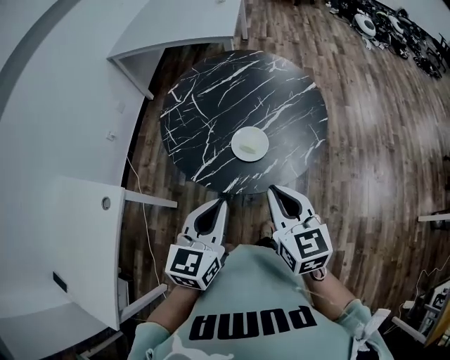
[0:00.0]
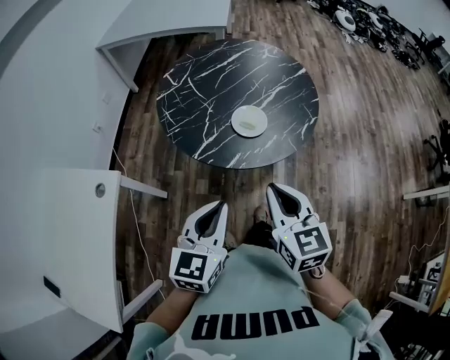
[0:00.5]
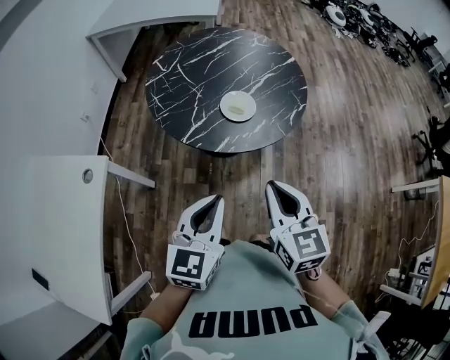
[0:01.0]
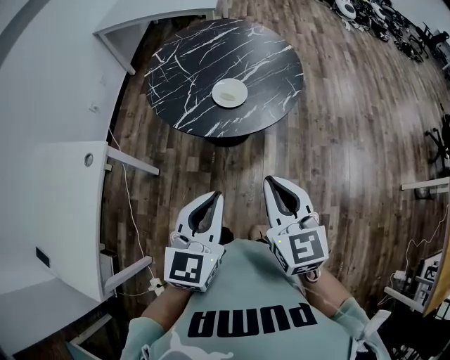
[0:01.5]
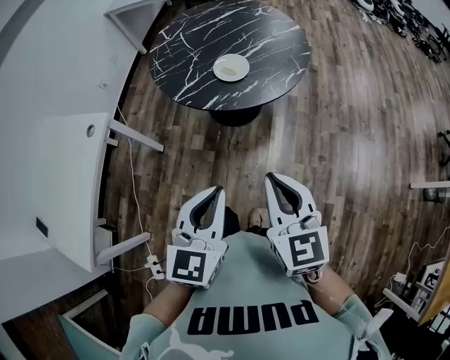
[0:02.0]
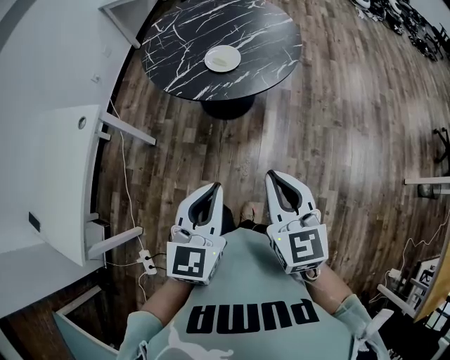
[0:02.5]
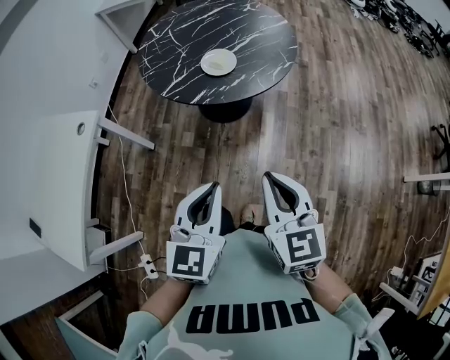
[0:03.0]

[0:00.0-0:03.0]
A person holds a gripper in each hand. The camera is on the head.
0:00.0 to 0:01.5: Both grippers travel together backward, approximately 20 cm.
0:01.5 to 0:03.0: The grippers both shift backward and to the right by roughly 10 cm.

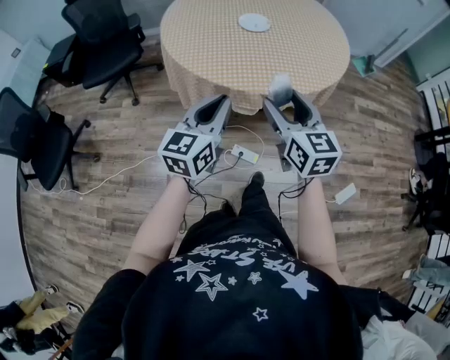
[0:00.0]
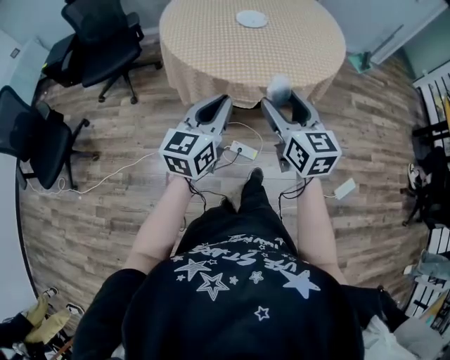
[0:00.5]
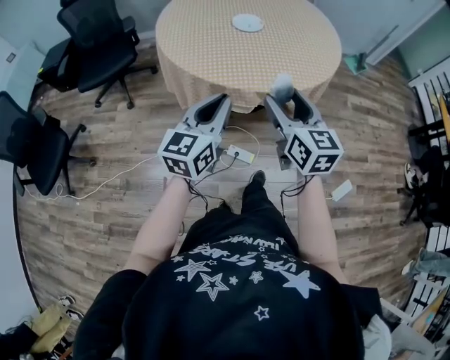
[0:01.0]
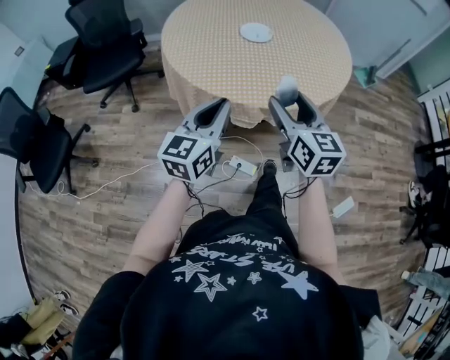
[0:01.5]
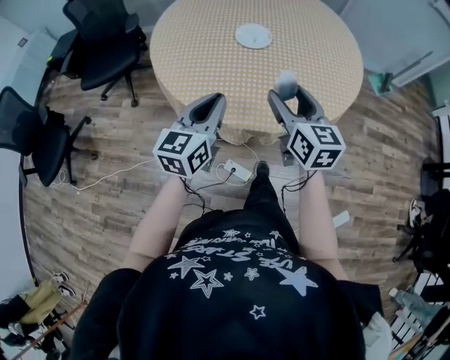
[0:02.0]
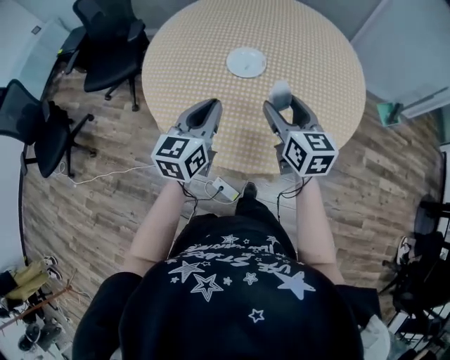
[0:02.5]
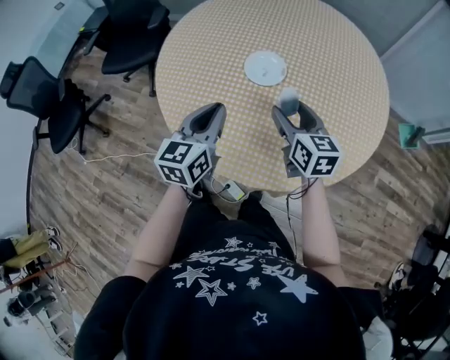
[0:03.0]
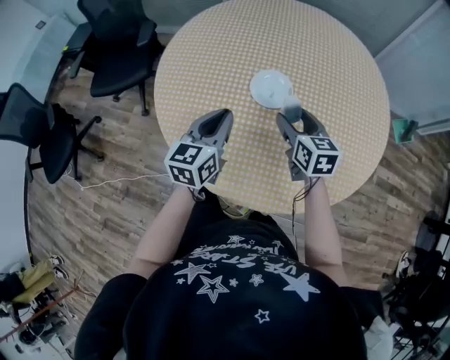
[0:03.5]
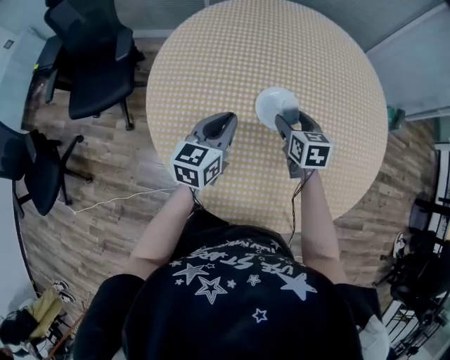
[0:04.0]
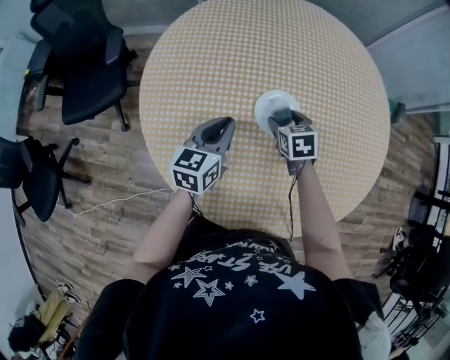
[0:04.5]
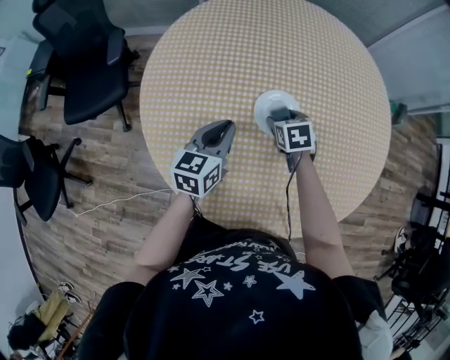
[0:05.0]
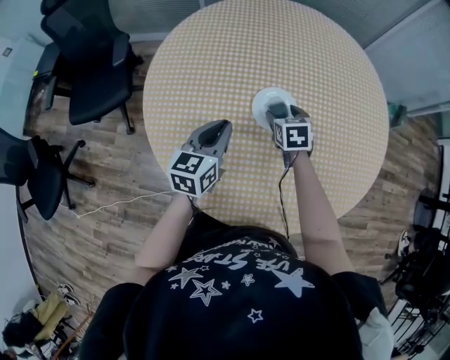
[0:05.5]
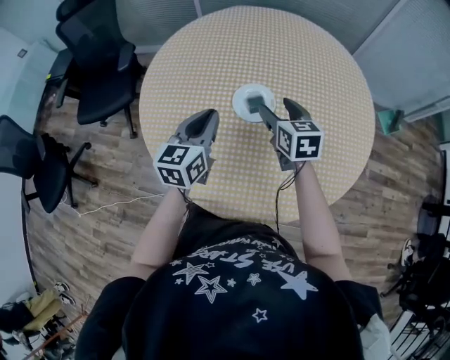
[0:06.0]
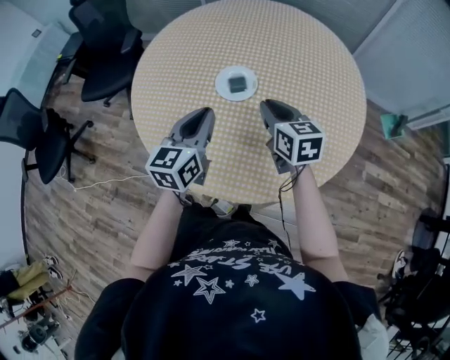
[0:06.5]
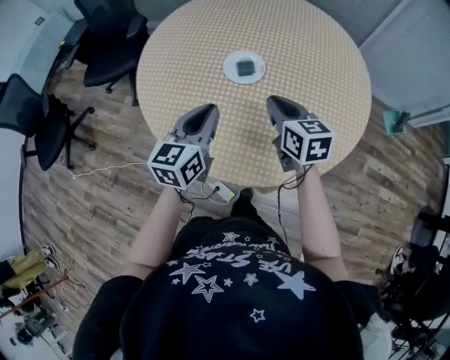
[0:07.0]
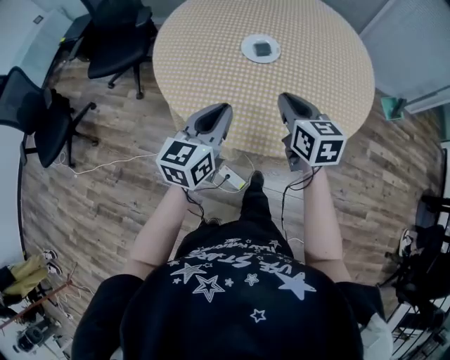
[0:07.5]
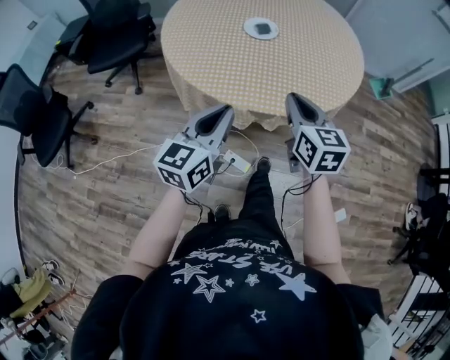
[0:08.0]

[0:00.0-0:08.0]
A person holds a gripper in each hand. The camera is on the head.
0:00.0 to 0:02.0: The two grippers go approximately 20 cm forward.
0:02.0 to 0:04.0: The left gripper is displaced forward by about 30 cm. Meanwhile the right gripper travels forward and downward by about 35 cm, and swivels some 30 degrees.
0:04.0 to 0:06.0: Both grippers move upward, some 5 cm.
0:06.0 to 0:08.0: The grippers both shift backward by roughly 40 cm. The right gripper closes up.

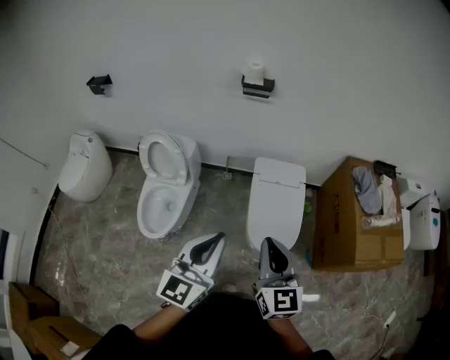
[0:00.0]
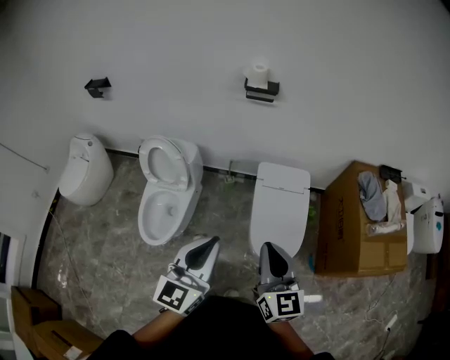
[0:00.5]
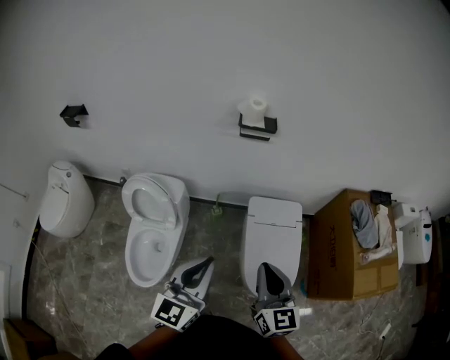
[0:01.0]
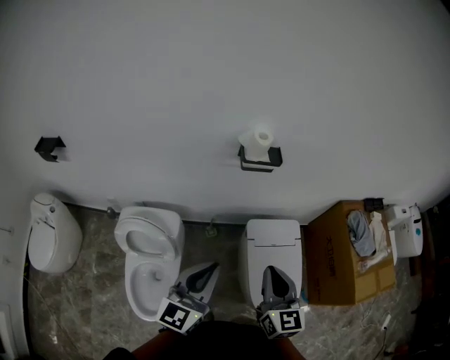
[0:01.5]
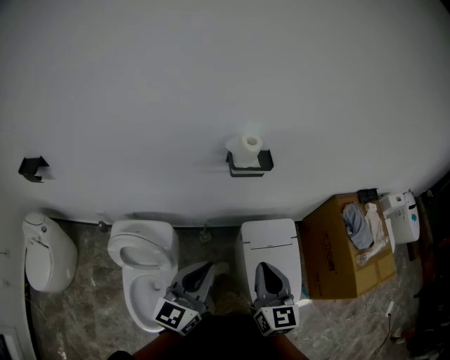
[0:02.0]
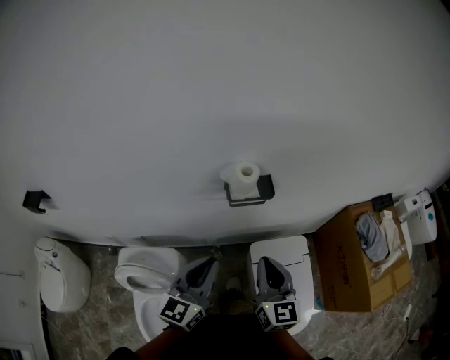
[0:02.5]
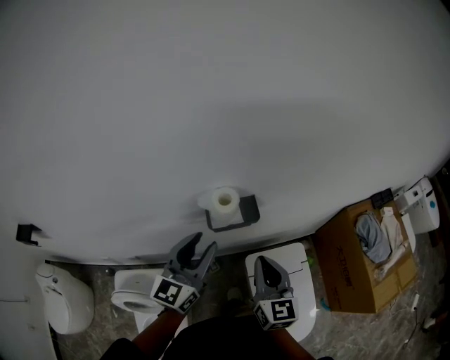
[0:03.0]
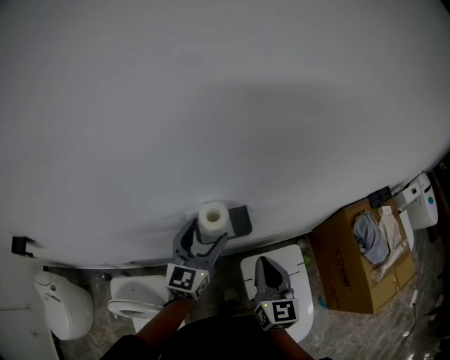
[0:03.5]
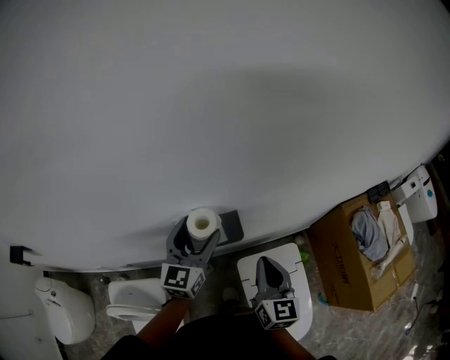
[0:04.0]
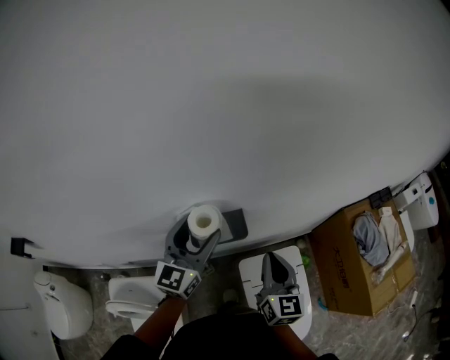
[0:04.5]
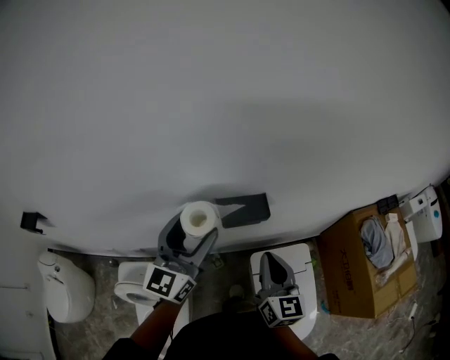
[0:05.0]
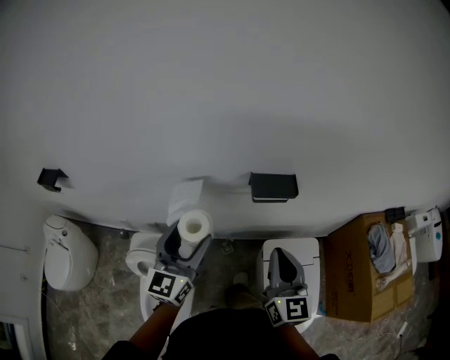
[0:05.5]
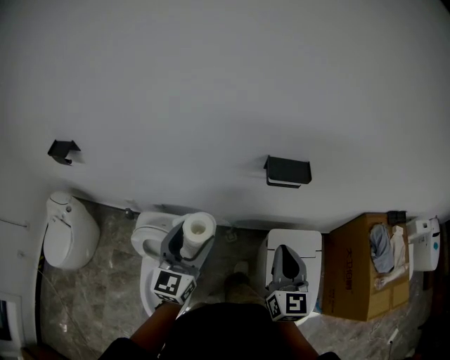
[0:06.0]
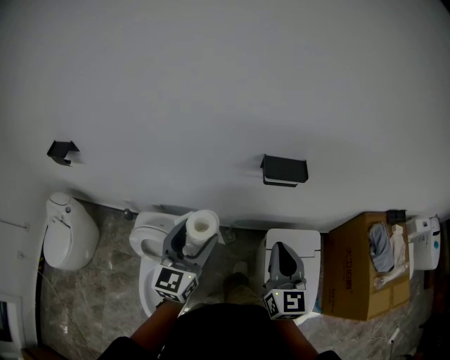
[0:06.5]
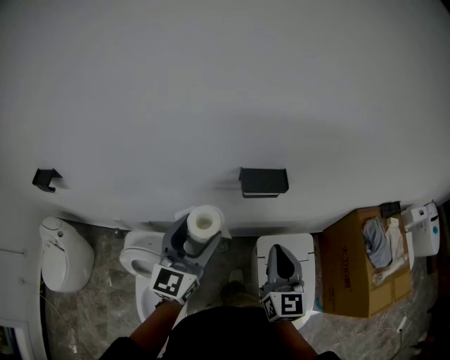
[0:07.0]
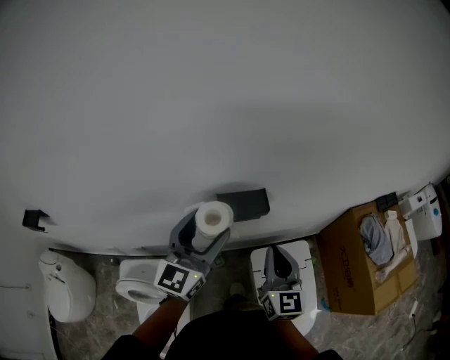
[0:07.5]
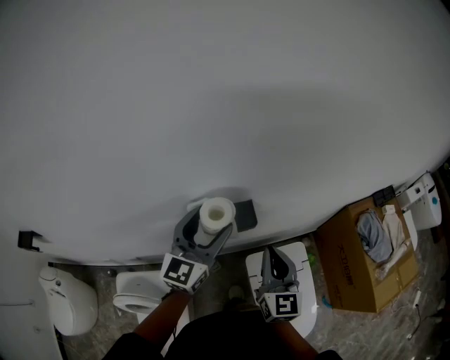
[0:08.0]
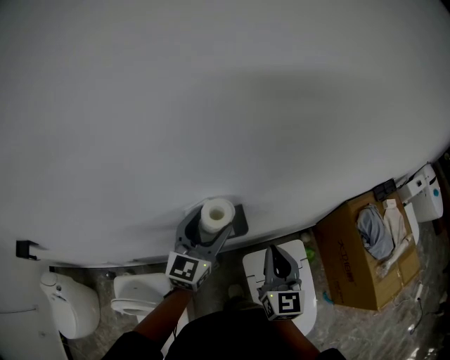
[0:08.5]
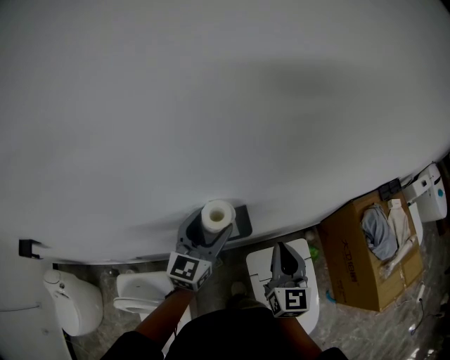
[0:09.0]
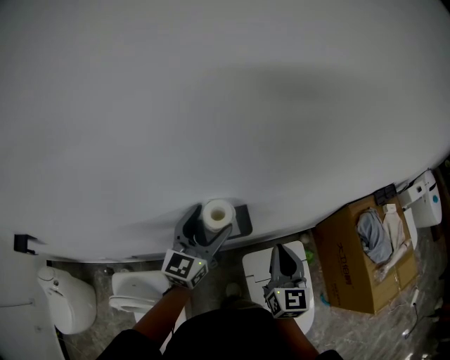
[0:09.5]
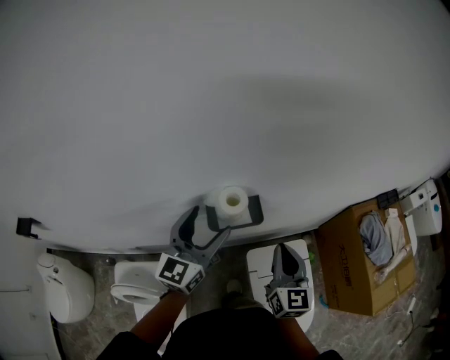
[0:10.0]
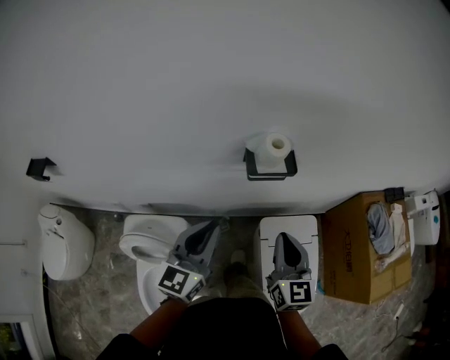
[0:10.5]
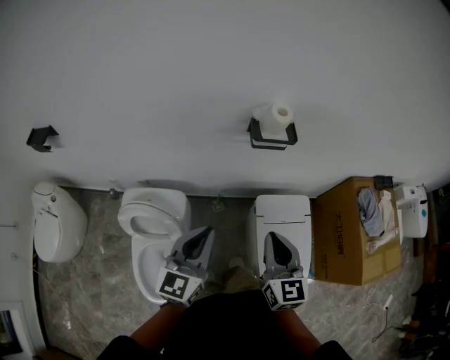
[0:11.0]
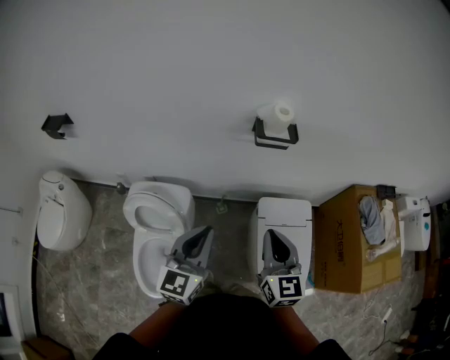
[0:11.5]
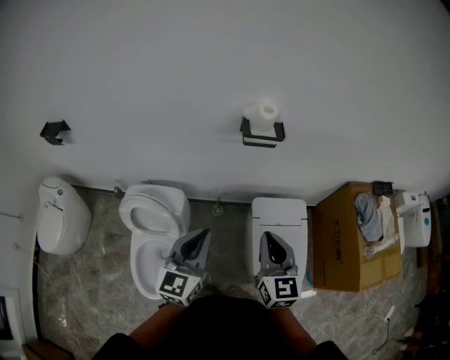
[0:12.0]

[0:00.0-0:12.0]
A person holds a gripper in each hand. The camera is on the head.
0:00.0 to 0:02.0: The two grippers travel together, forward and to the left, about 50 cm.
0:02.0 to 0:04.0: The grippers both shift forward by about 40 cm. The left gripper opens its fingers.
0:04.0 to 0:06.0: Both grippers move backward and to the left, roughly 35 cm.
0:06.0 to 0:08.0: The right gripper is displaced forward and to the right by approximately 25 cm. Meanwhile the left gripper moves forward and to the right, about 35 cm, and rotates some 20 degrees.
0:10.0 to 0:12.0: Both grippers move backward, approximately 35 cm. The left gripper closes.

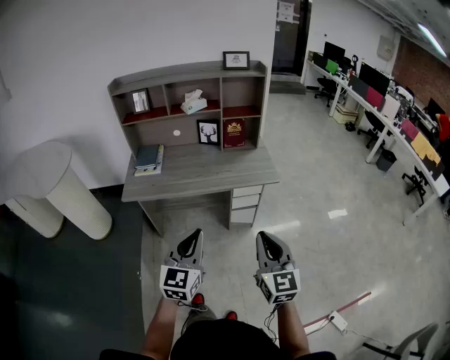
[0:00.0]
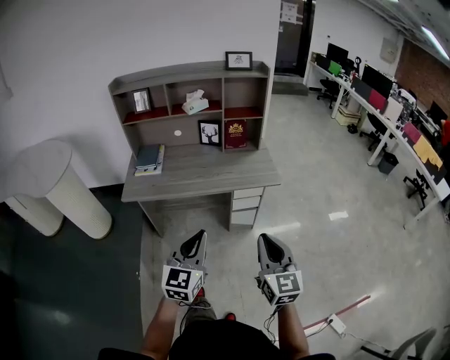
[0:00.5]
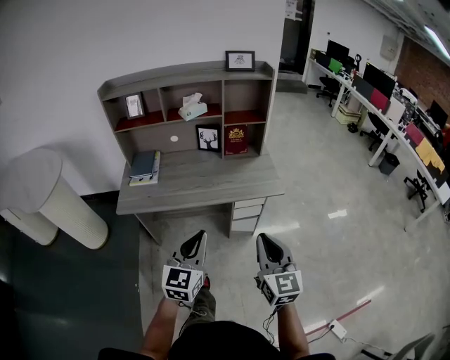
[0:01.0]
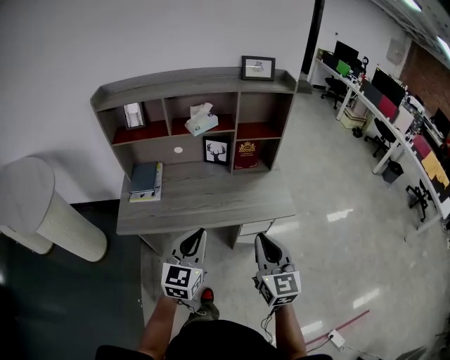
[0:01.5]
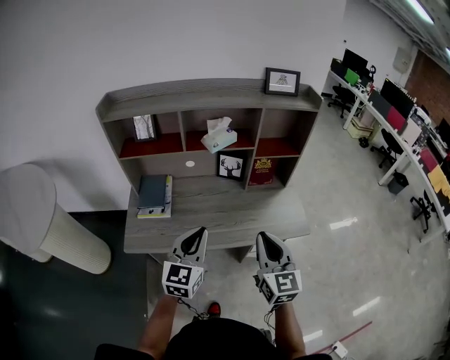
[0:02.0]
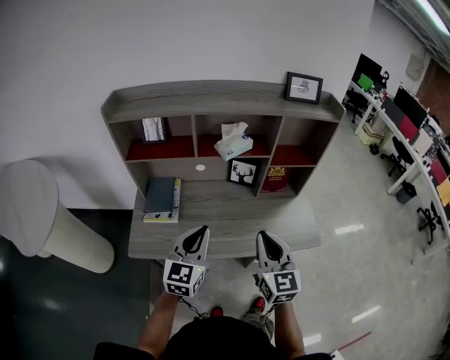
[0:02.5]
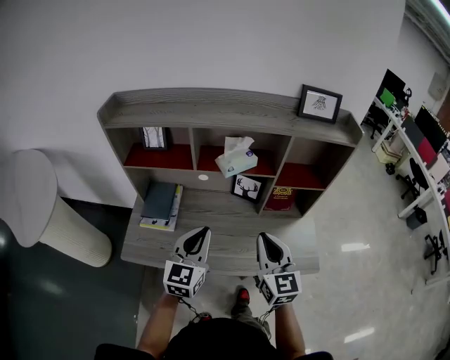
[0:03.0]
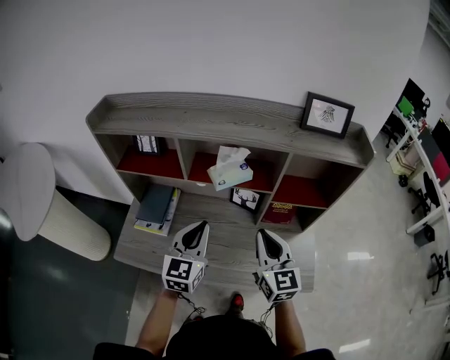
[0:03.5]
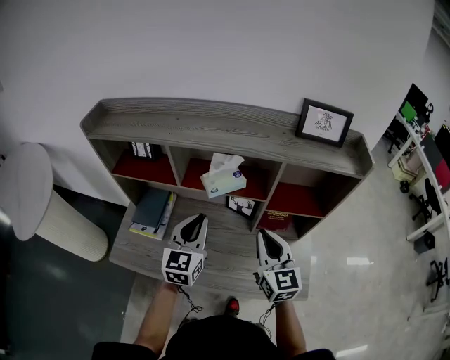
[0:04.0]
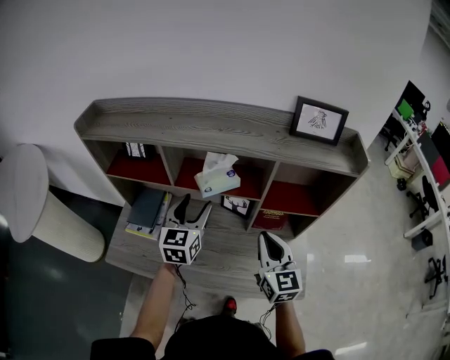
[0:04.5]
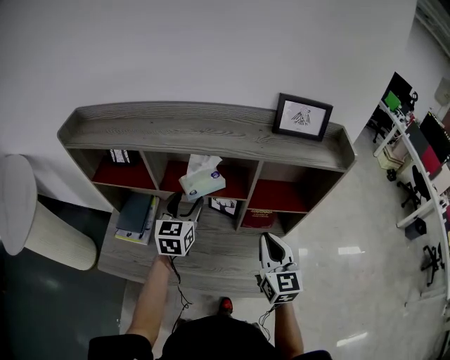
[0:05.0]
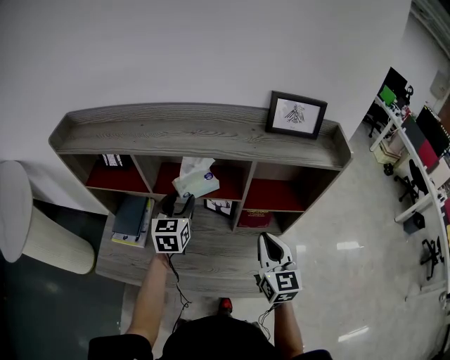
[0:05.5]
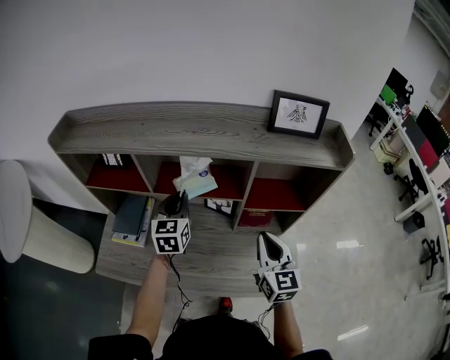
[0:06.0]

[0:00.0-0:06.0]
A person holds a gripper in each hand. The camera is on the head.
0:00.0 to 0:02.0: The left gripper heads forward, covering about 35 cm. The right gripper is displaced forward and to the left by about 40 cm.
0:02.0 to 0:04.0: Both grippers move forward, approximately 25 cm.
0:04.0 to 0:06.0: The left gripper heads forward, covering about 10 cm, and opens, then closes again, while the right gripper goes some 5 cm to the right.
